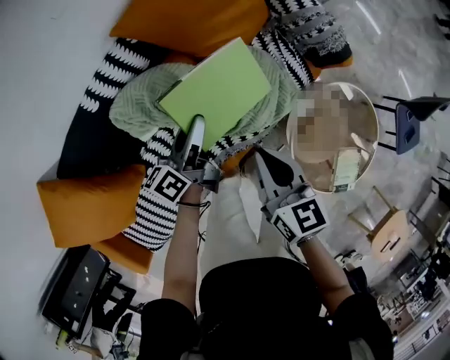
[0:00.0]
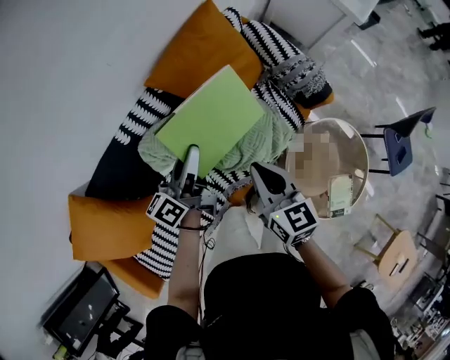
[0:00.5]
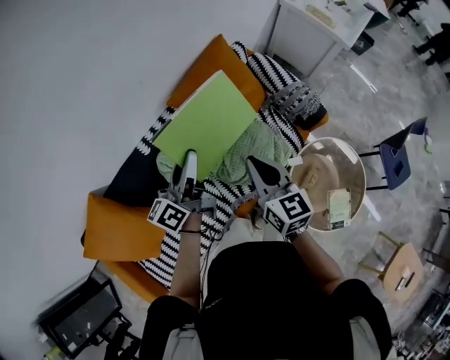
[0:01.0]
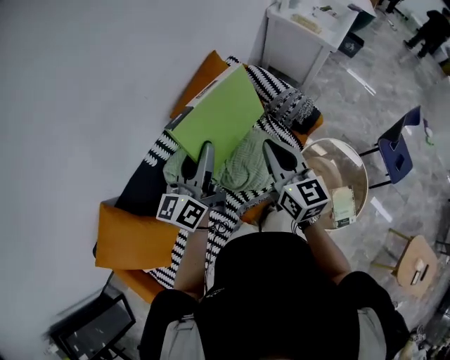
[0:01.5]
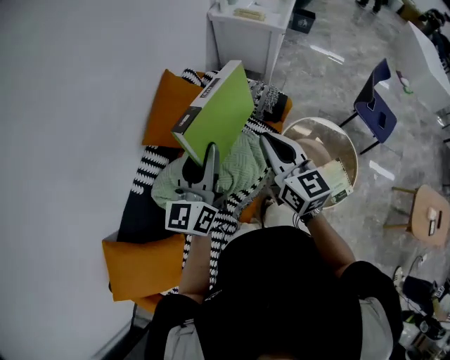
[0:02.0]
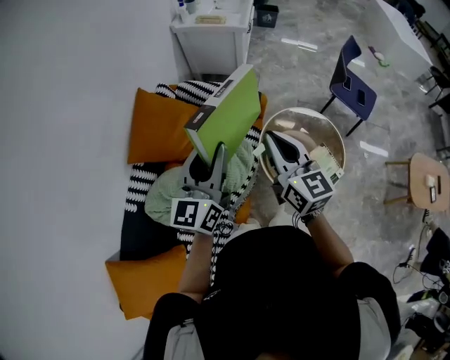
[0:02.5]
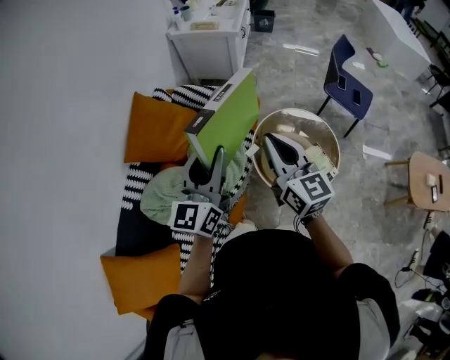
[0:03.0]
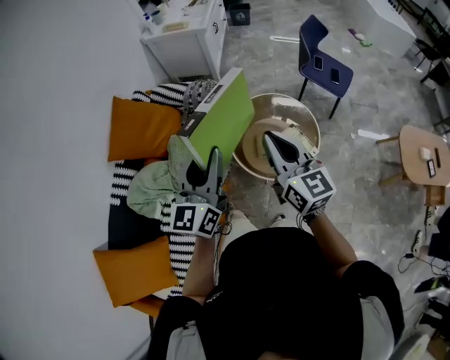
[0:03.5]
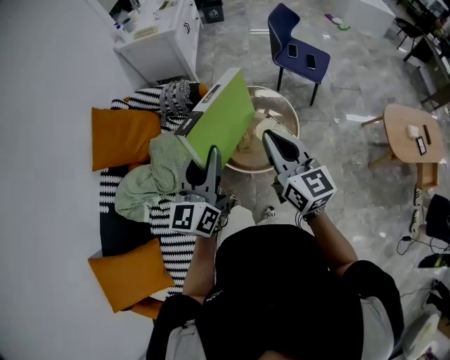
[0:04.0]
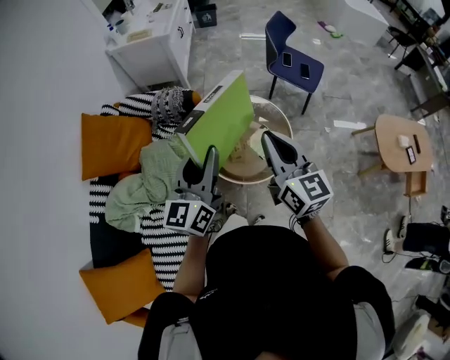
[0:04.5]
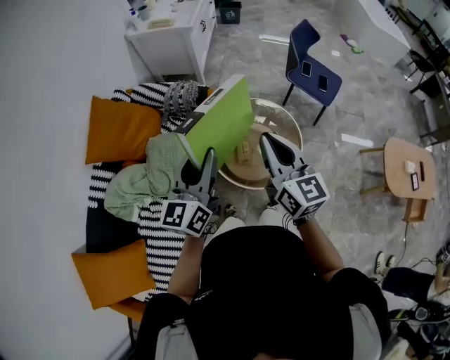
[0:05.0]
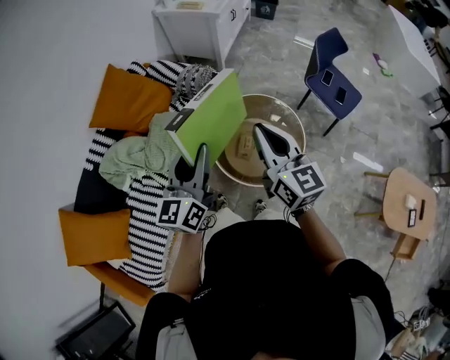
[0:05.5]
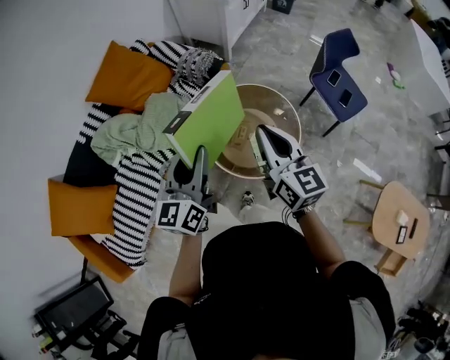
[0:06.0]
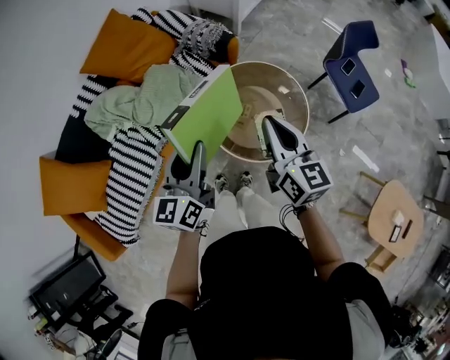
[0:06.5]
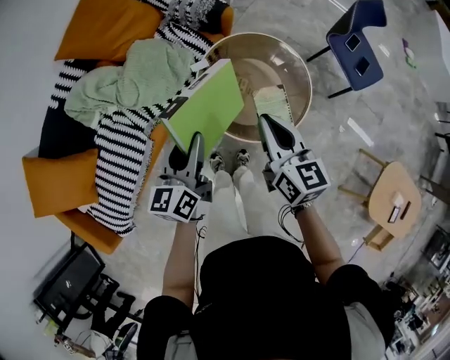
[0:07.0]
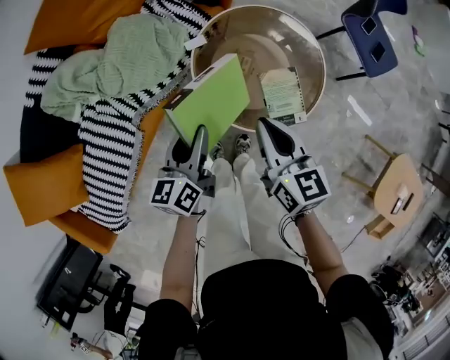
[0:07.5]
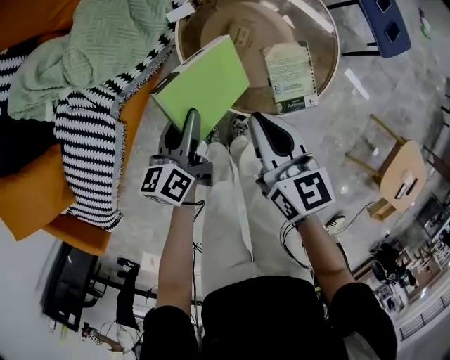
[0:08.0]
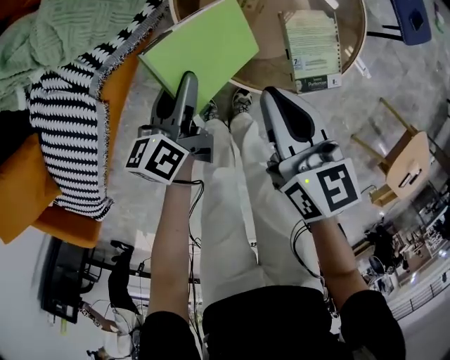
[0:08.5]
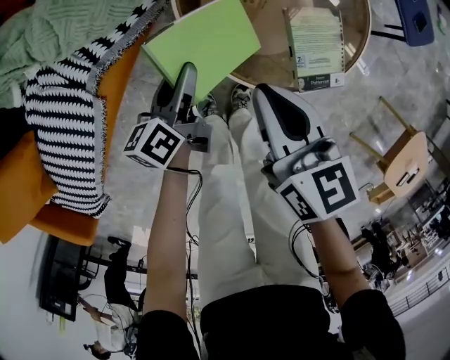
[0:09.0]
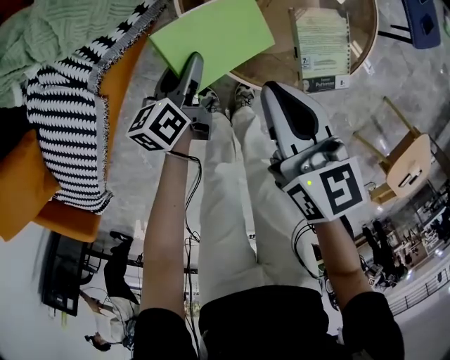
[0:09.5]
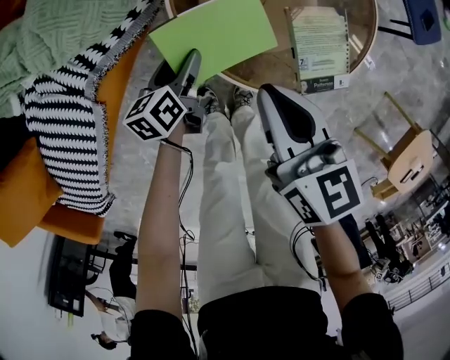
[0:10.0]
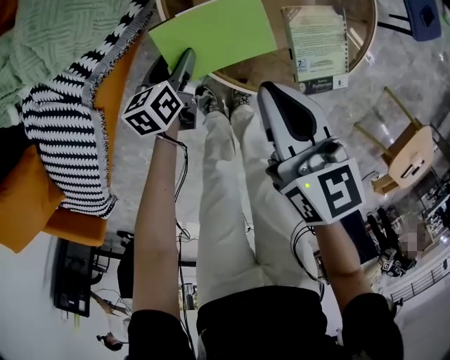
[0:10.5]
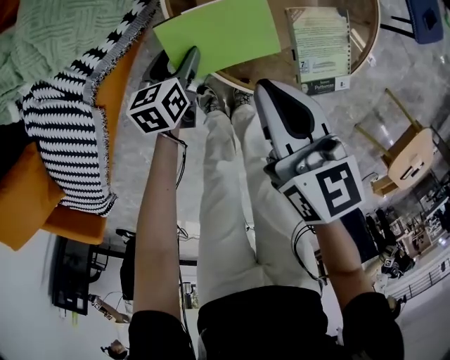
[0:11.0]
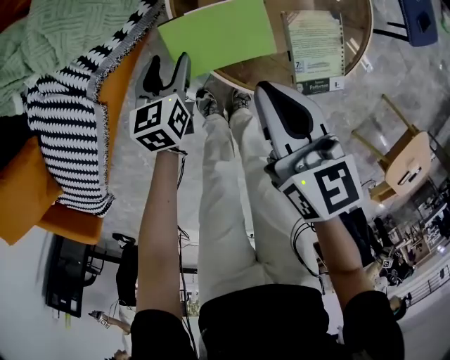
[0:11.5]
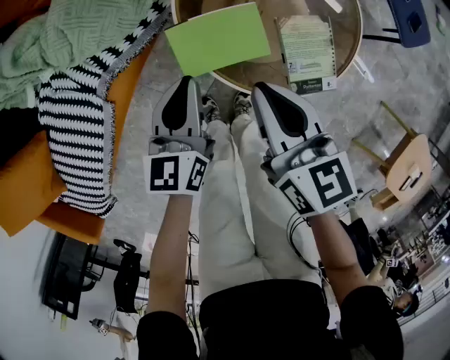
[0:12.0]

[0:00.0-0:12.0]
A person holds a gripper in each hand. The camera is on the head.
0:00.0 to 0:02.0: Both grippers move upward, roughly 35 cm. The right gripper swivels approximately 30 degrees. The left gripper twists about 50 degrees clockwise, seen from behind.
0:02.0 to 0:04.0: The pair of grippers is taken to the right and backward, about 40 cm. The right gripper rotates roughly 20 degrees.
0:04.0 to 0:06.0: The left gripper travels downward by about 5 cm, and changes its angle by some 30 degrees, while the right gripper moves approximately 15 cm, and changes its angle by some 30 degrees.
0:06.0 to 0:08.0: Both grippers move downward, some 40 cm. The right gripper turns by some 30 degrees. Meanwhile the left gripper turns by about 40 degrees.
0:08.0 to 0:10.0: The right gripper travels downward by about 10 cm. Meanwhile the left gripper travels downward by roughly 20 cm, and opens up.
0:10.0 to 0:12.0: The left gripper shifts some 20 cm upward, changes its angle by approximately 30 degrees, and closes its fingers; the right gripper shifts roughly 5 cm upward.

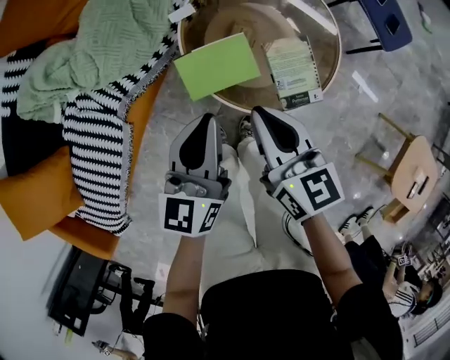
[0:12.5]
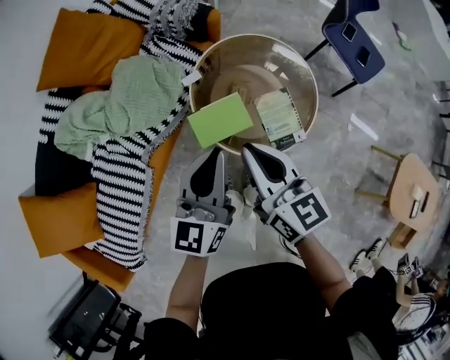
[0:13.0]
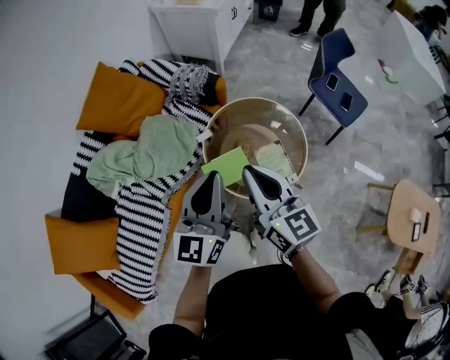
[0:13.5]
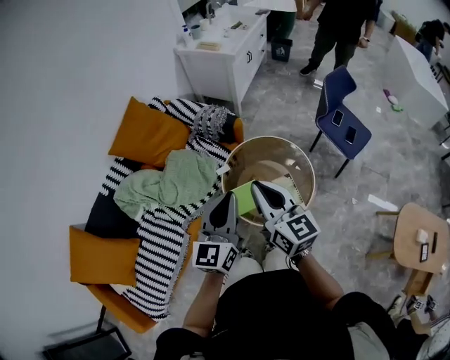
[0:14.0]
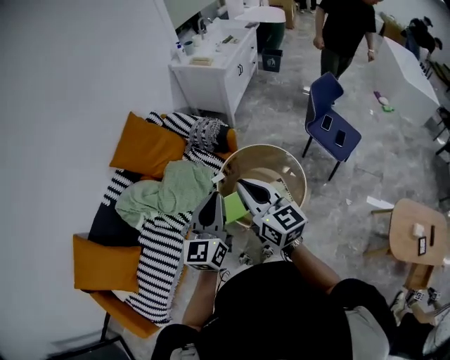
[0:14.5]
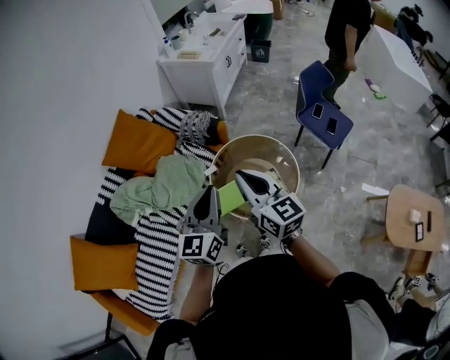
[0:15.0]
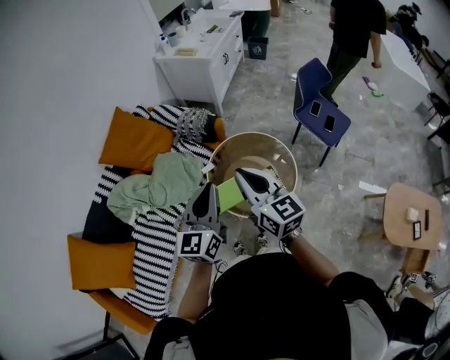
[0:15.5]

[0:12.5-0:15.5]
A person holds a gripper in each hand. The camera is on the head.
0:12.5 to 0:14.0: The two grippers go some 35 cm upward. The left gripper rotates some 20 degrees, while the right gripper changes its angle by approximately 20 degrees.
0:14.0 to 0:15.5: There are only small adjustments of the grippers.

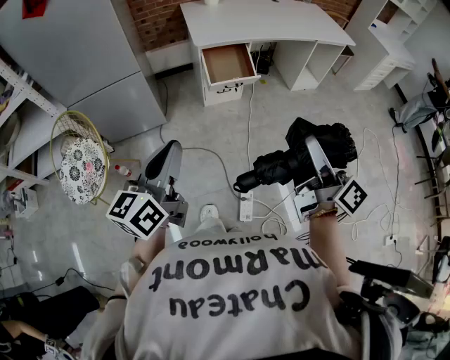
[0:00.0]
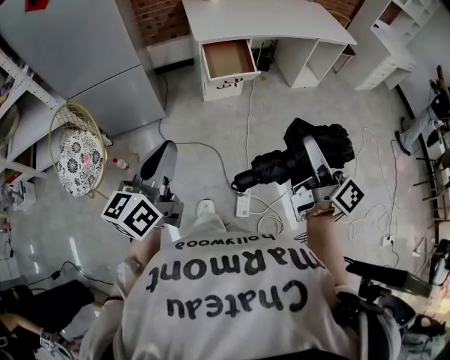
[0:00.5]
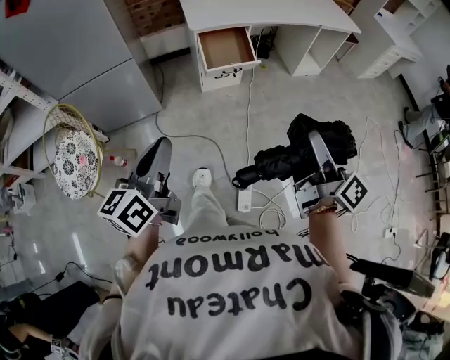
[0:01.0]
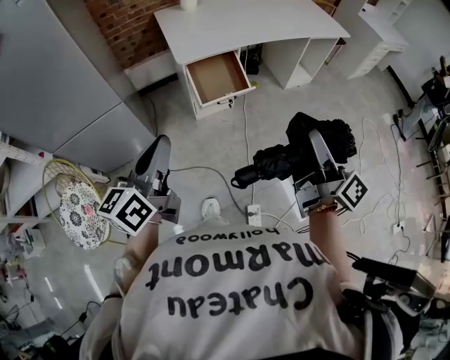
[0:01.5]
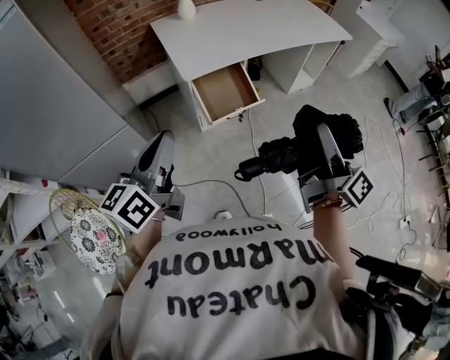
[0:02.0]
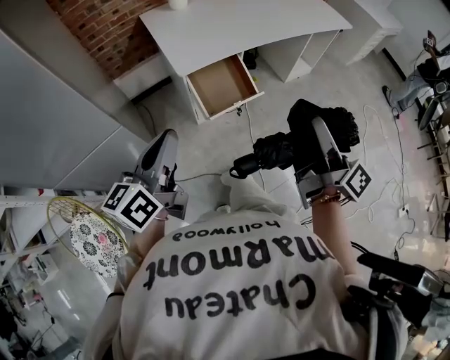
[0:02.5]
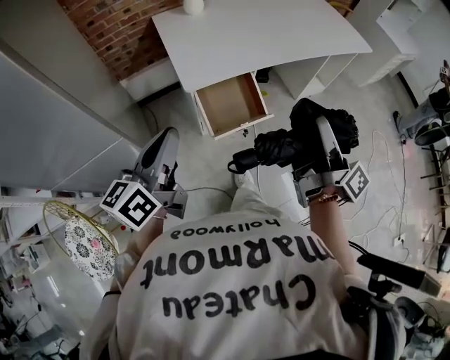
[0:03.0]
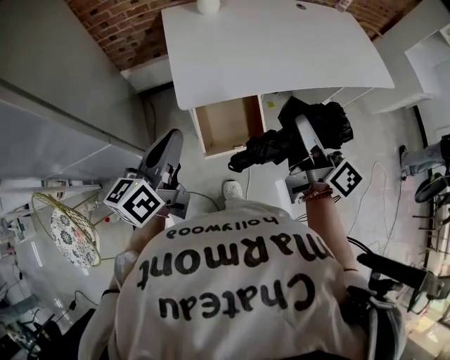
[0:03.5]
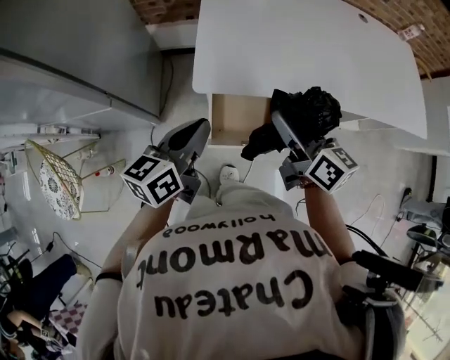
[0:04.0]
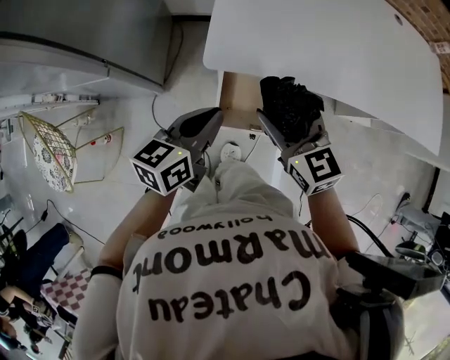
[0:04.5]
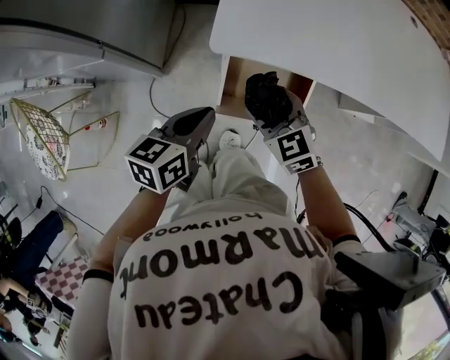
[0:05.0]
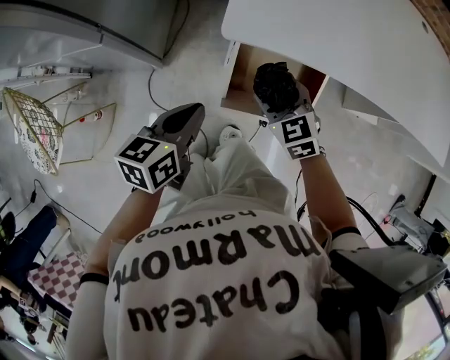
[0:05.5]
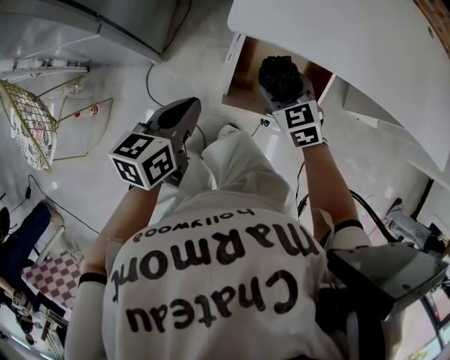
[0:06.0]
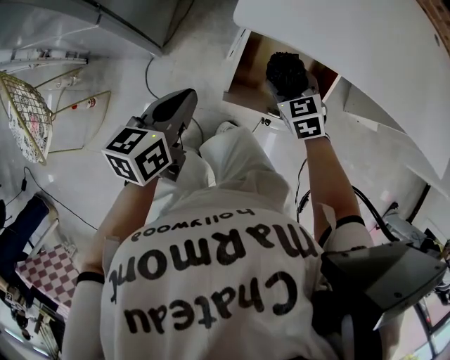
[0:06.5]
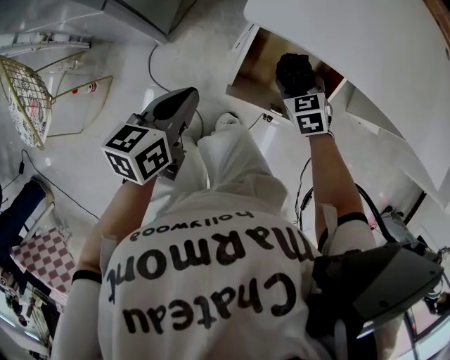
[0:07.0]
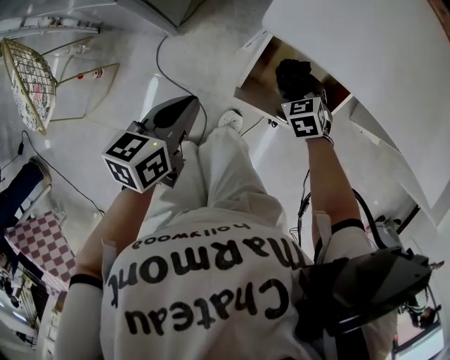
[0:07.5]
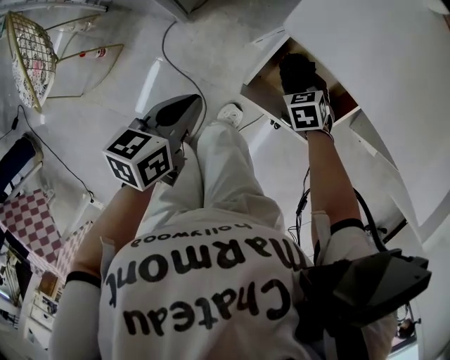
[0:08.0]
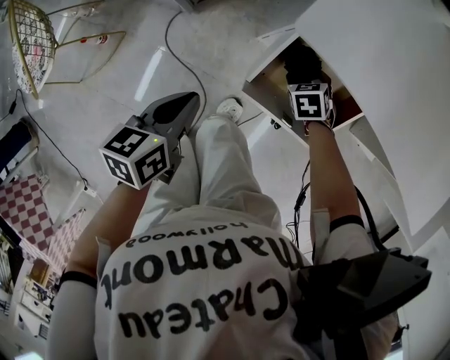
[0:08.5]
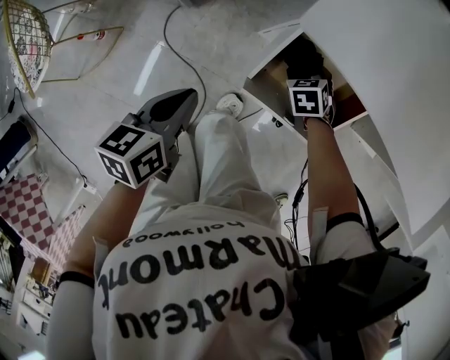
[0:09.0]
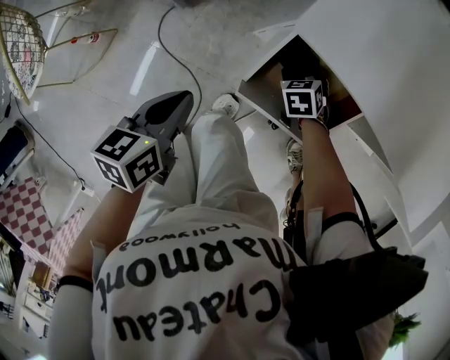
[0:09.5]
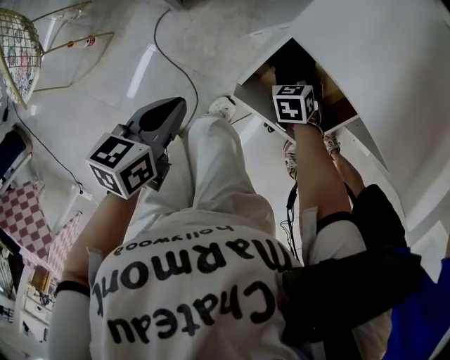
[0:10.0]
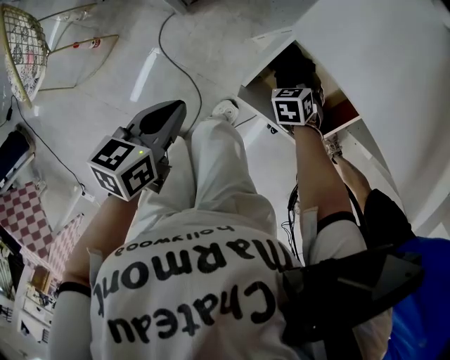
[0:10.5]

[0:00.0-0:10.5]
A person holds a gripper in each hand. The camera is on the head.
0:00.0 to 0:02.0: Both grippers move forward, about 30 cm.
0:02.0 to 0:04.0: The left gripper moves roughly 35 cm, and turns by roughly 20 degrees. Meanwhile the right gripper changes place by some 40 cm, and turns by about 50 degrees.
0:04.0 to 0:06.5: The right gripper heads downward, covering some 30 cm, and tips its fingers downward by about 40 degrees. The left gripper travels downward and to the left by about 20 cm.
0:06.5 to 0:08.5: The left gripper changes place by approximately 5 cm. The right gripper shifts approximately 10 cm downward, and swivels roughly 20 degrees.
0:08.5 to 0:10.5: The grippers stay close to where they were, moving slightly.

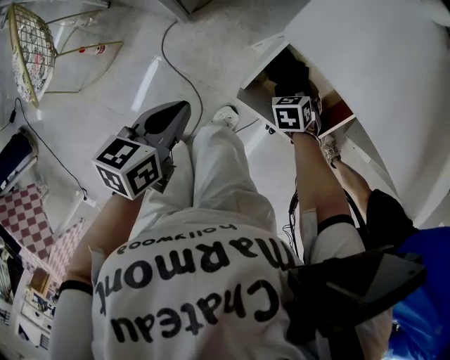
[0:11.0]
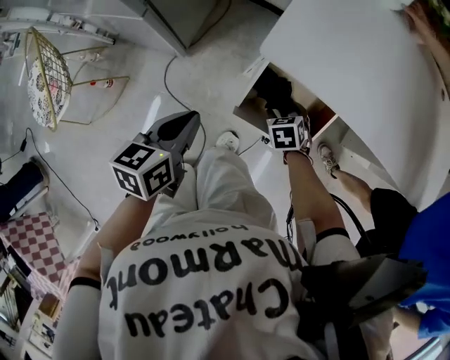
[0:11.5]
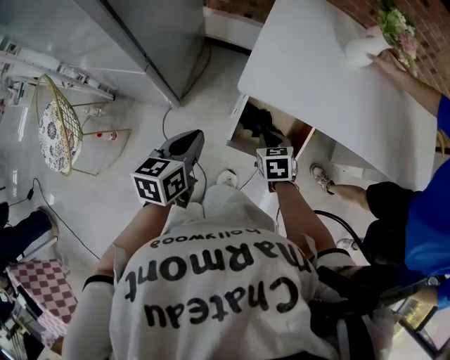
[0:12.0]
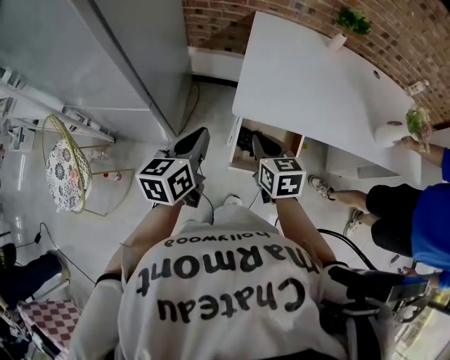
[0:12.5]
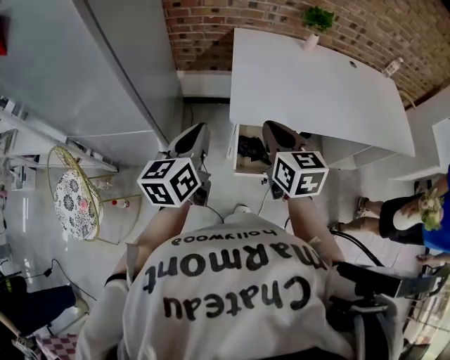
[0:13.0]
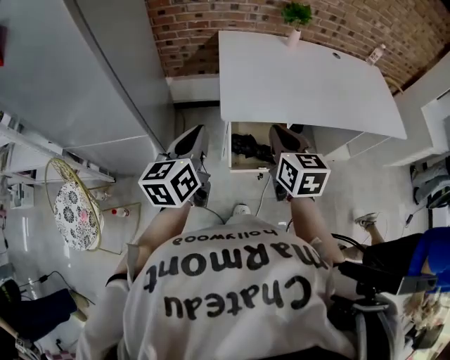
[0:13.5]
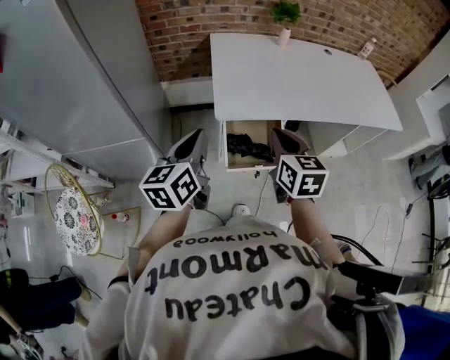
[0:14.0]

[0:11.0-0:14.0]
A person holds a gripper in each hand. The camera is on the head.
0:11.0 to 0:12.5: The right gripper is displaced upward by roughly 35 cm, points its fingers some 30 degrees further upward, and closes up, while the left gripper goes some 20 cm upward, and changes its angle by about 30 degrees.
0:12.5 to 0:14.0: The right gripper travels upward, backward and to the right by approximately 15 cm, and turns by some 20 degrees, while the left gripper goes approximately 10 cm upward and backward.
